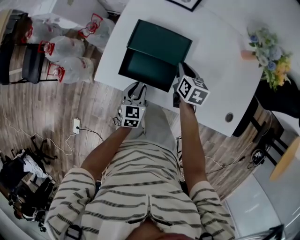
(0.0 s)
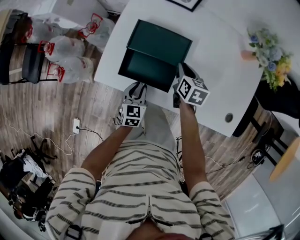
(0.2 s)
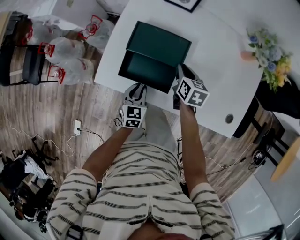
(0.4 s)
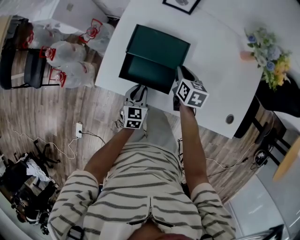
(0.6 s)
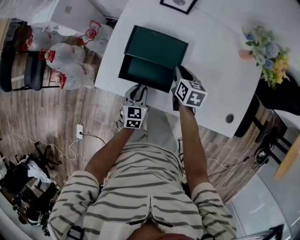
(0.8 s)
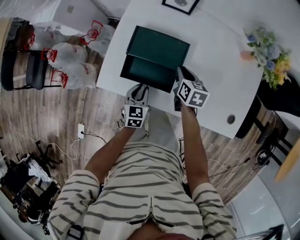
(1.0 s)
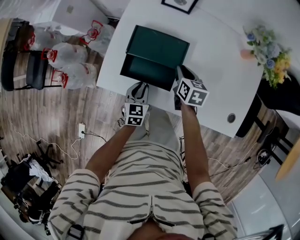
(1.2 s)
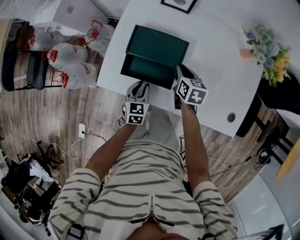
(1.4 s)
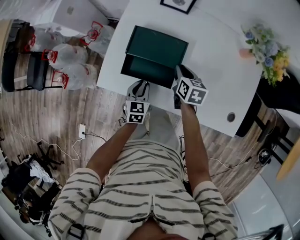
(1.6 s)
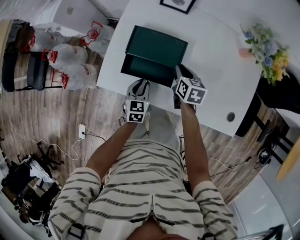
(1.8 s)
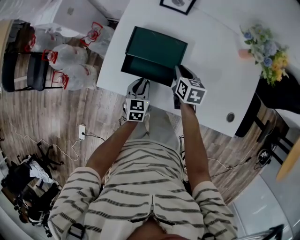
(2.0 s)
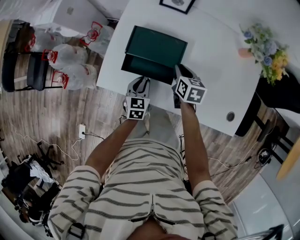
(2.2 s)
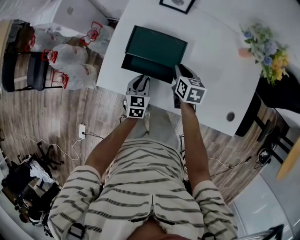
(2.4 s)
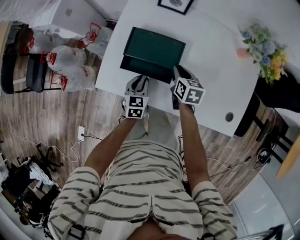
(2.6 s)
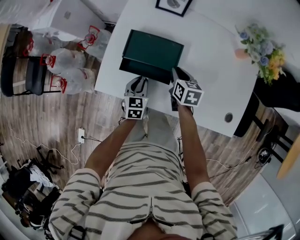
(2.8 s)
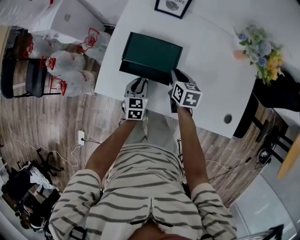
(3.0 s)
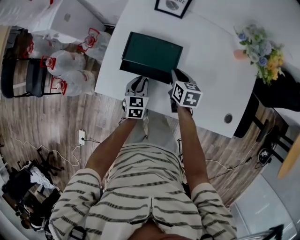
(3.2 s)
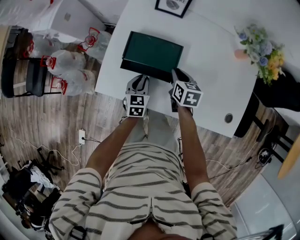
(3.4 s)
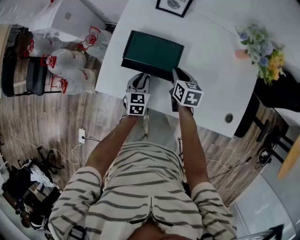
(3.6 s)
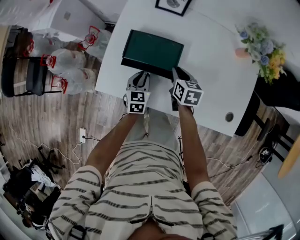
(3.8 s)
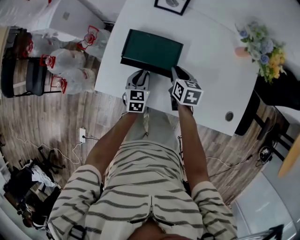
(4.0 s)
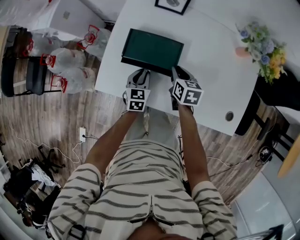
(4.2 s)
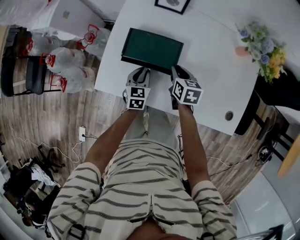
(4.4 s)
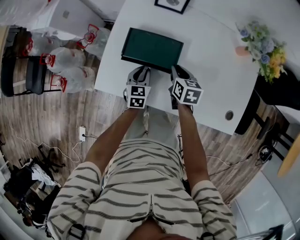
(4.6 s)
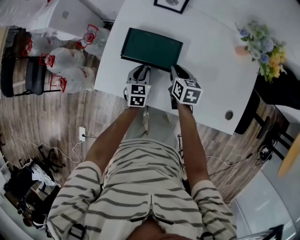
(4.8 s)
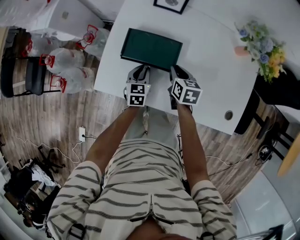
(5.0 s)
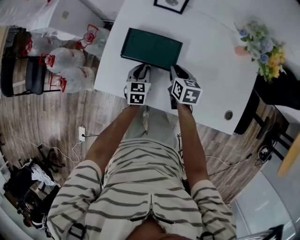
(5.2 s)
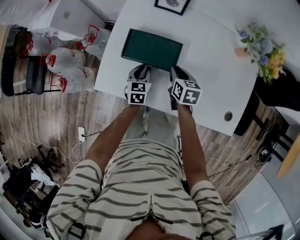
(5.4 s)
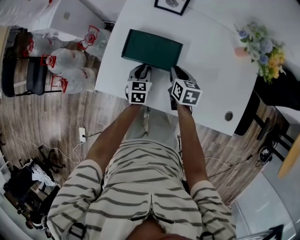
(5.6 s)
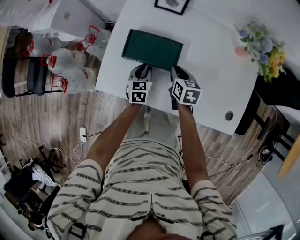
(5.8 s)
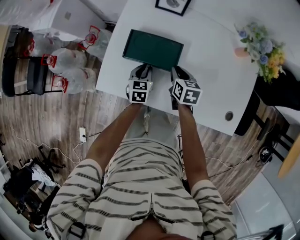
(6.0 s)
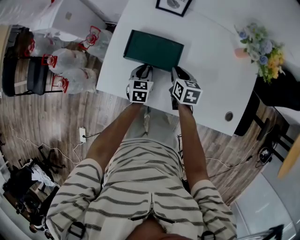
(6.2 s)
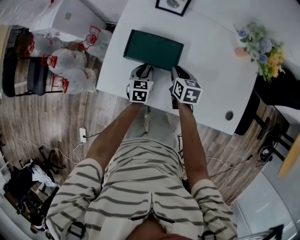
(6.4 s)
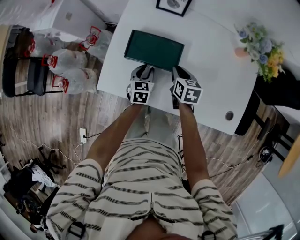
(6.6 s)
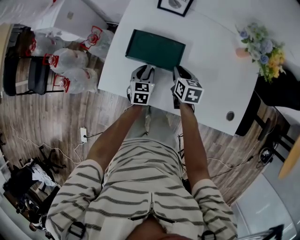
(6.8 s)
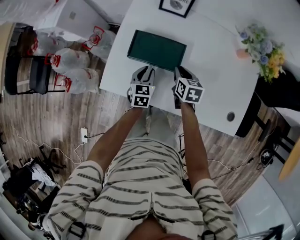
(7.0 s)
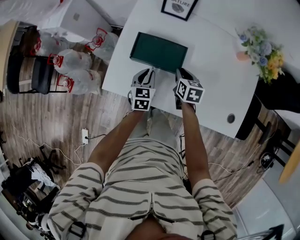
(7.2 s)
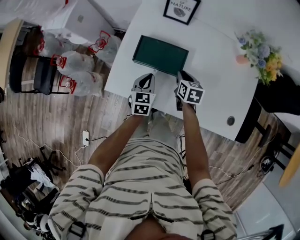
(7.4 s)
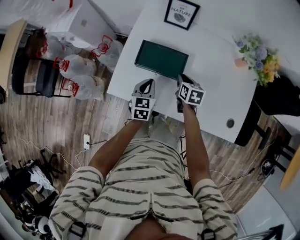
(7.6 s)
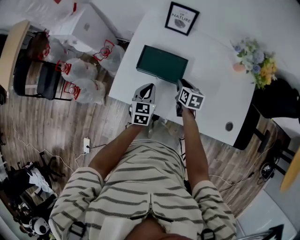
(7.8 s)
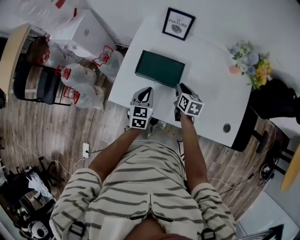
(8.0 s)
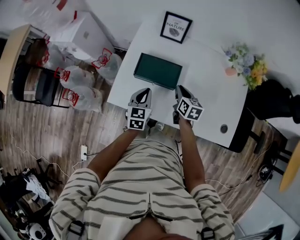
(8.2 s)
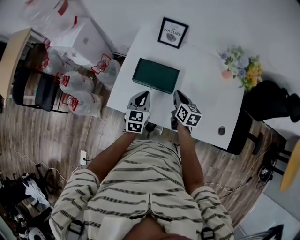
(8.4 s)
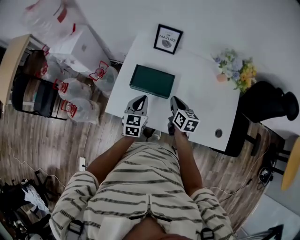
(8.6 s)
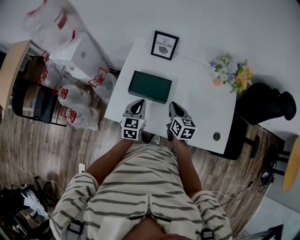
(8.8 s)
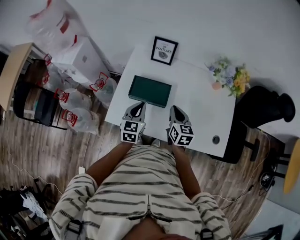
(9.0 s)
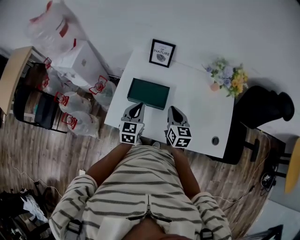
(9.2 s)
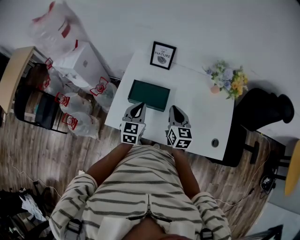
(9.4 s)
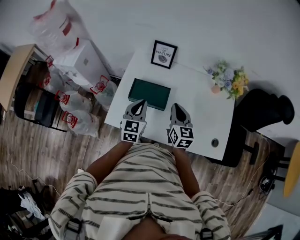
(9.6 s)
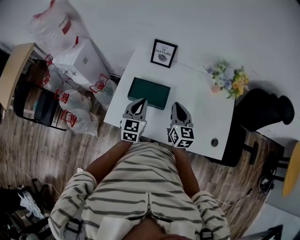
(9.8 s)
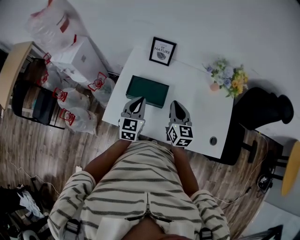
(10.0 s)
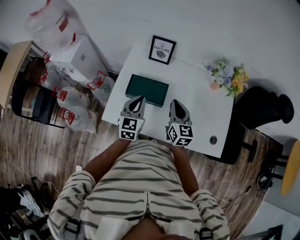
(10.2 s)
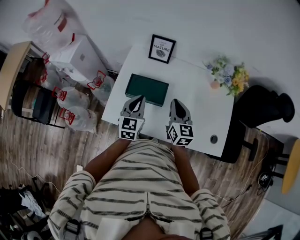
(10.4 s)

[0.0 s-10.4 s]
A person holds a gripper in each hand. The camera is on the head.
0.0 to 1.4 s: The grippers make only small movements.
1.4 to 3.0 s: There are only small adjustments of the grippers.
3.0 to 6.0 s: There are only small adjustments of the grippers.
6.0 to 7.4 s: The left gripper travels upward by some 5 cm.
7.4 to 9.0 s: The two grippers go approximately 15 cm upward. The right gripper turns by some 20 degrees.
9.0 to 10.4 s: The right gripper goes about 5 cm upward.

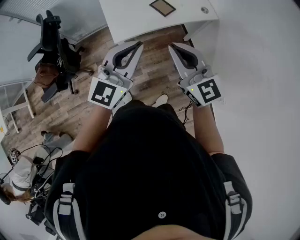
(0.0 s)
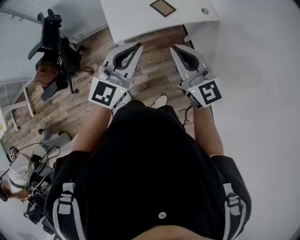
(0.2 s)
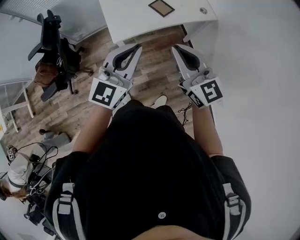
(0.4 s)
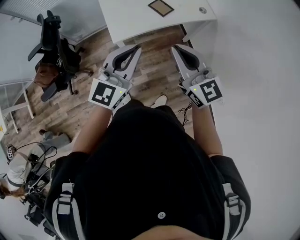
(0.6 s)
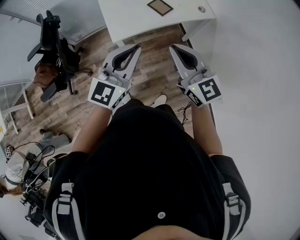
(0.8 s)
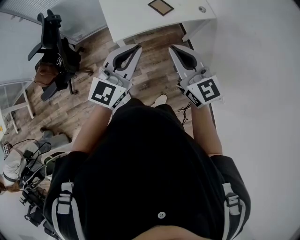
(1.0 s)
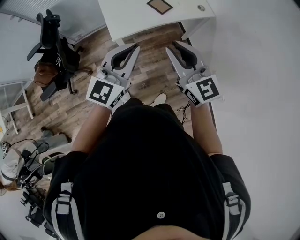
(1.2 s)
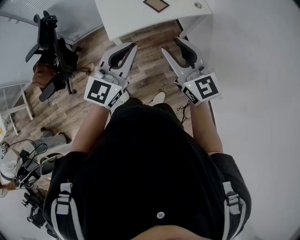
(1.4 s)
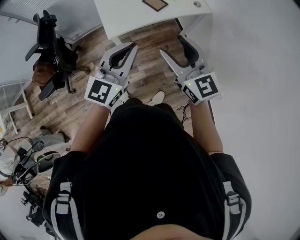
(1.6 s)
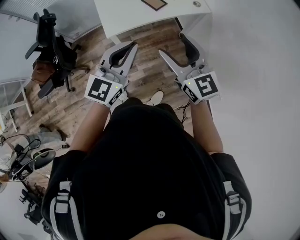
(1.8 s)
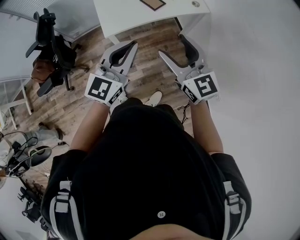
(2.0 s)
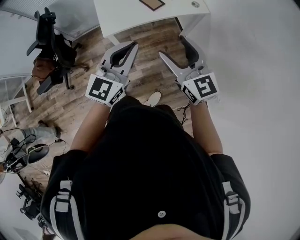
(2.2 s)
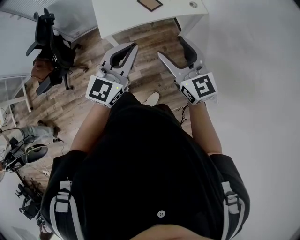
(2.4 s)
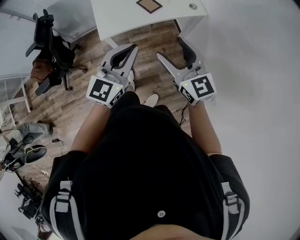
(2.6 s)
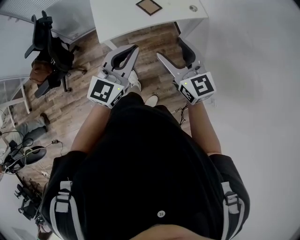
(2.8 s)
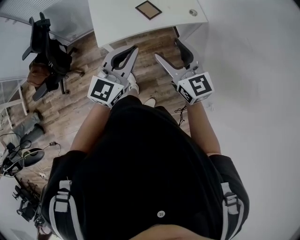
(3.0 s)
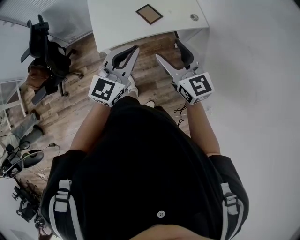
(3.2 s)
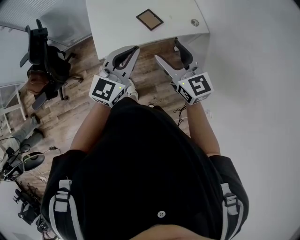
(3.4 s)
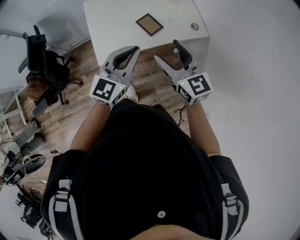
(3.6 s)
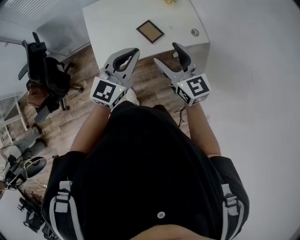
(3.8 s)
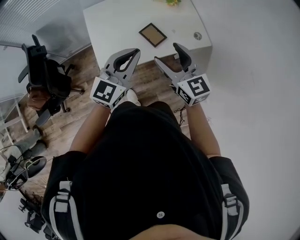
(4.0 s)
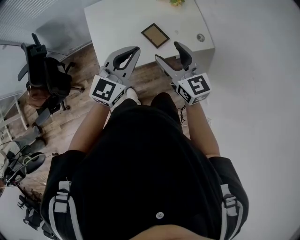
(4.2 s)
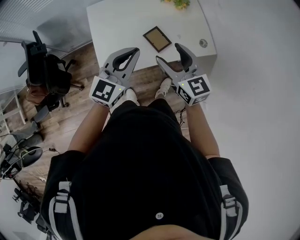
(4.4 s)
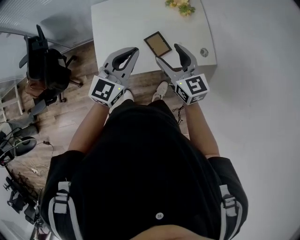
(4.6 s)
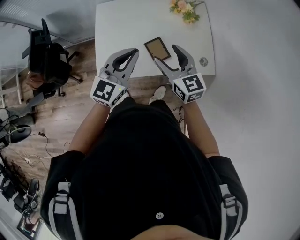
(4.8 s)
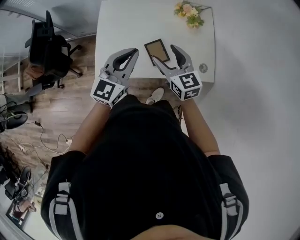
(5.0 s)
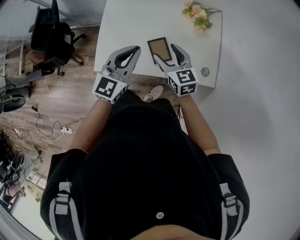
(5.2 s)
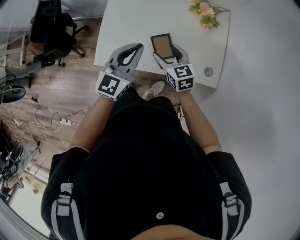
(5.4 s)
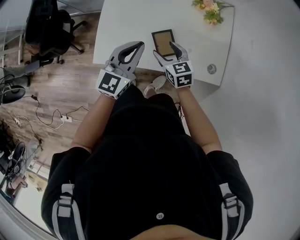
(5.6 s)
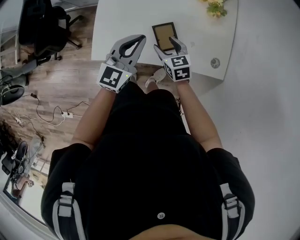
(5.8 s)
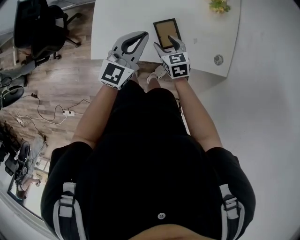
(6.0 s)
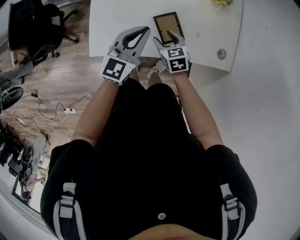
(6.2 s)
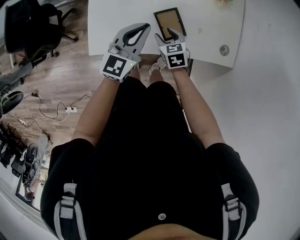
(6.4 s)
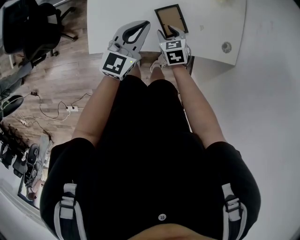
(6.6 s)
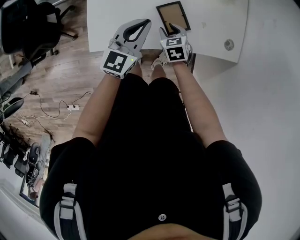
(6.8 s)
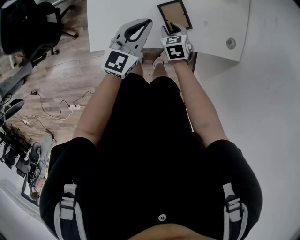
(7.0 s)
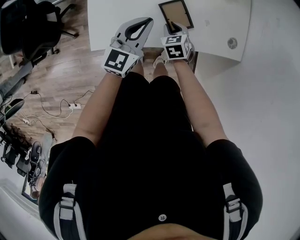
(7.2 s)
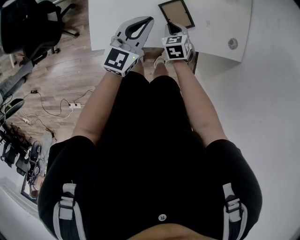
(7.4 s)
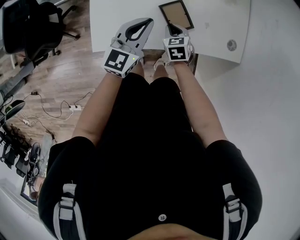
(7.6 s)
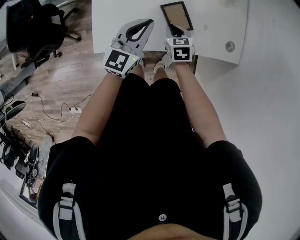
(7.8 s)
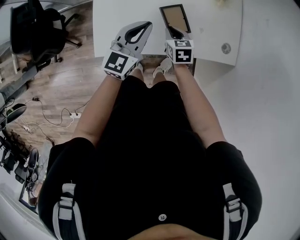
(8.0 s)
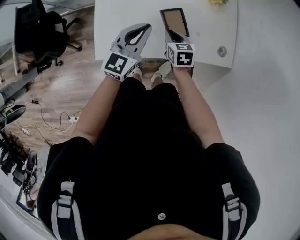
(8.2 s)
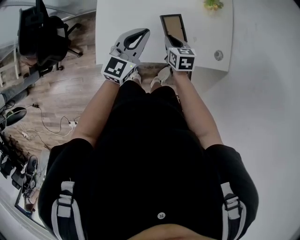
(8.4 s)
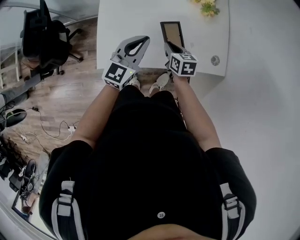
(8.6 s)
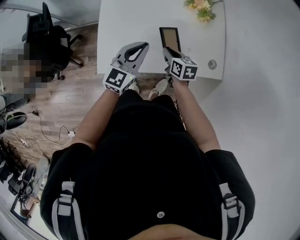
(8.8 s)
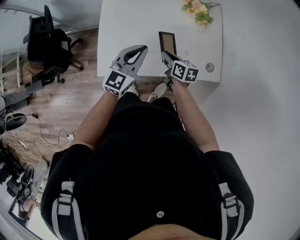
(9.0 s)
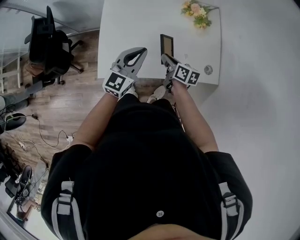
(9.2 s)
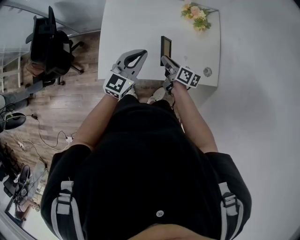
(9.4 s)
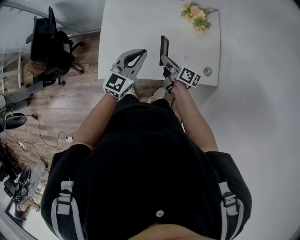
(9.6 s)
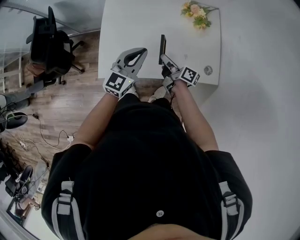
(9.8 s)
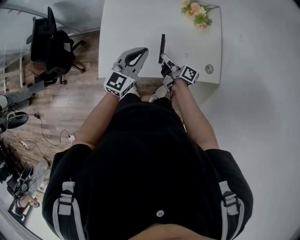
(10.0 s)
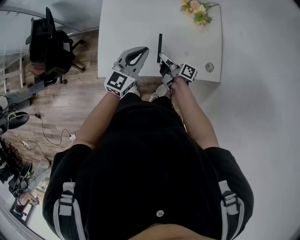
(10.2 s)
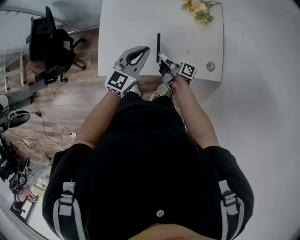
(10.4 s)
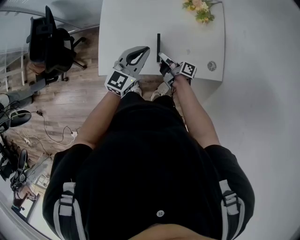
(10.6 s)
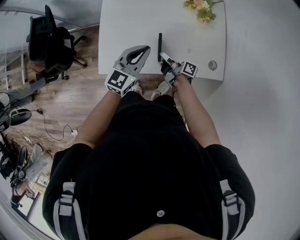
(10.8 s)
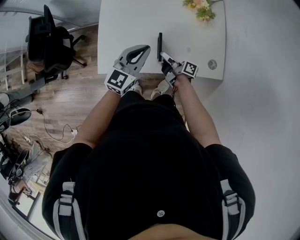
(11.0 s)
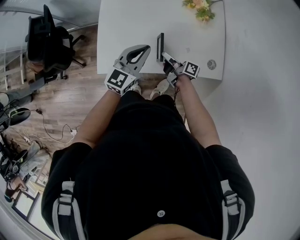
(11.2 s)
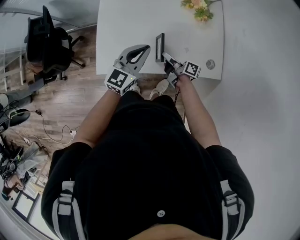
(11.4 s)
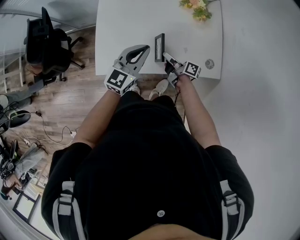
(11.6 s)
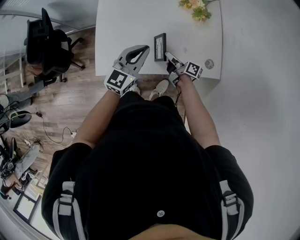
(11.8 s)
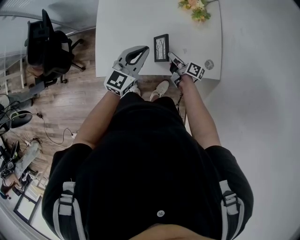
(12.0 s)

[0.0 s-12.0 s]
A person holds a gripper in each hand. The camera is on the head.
0.0 to 1.6 s: The left gripper moves roughly 5 cm. The right gripper changes place by approximately 5 cm, and opens up.
1.6 to 3.0 s: The left gripper goes some 10 cm to the right and forward; the right gripper goes about 10 cm forward and to the right.
3.0 to 4.4 s: The two grippers go about 30 cm forward.
4.4 to 6.0 s: The left gripper heads downward and forward, covering roughly 20 cm, and swivels roughly 20 degrees. Meanwhile the right gripper shifts roughly 30 cm downward and forward, and tips its fingers downward by approximately 30 degrees.
6.0 to 7.6 s: The grippers both shift downward by roughly 5 cm. The right gripper closes up.
7.6 to 9.0 s: Both grippers move upward, about 10 cm. The right gripper rotates roughly 40 degrees.
9.0 to 10.4 s: The right gripper changes its angle by roughly 50 degrees.
10.4 to 12.0 s: The right gripper shifts some 5 cm to the right.

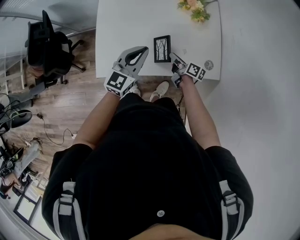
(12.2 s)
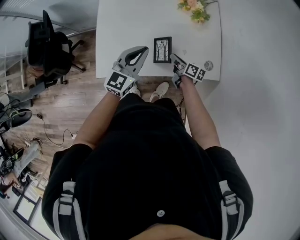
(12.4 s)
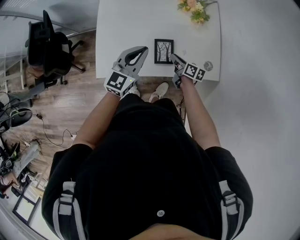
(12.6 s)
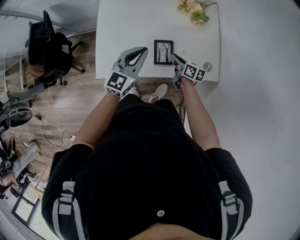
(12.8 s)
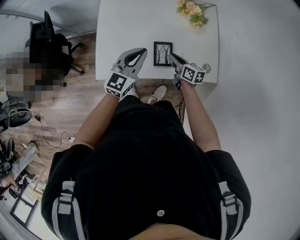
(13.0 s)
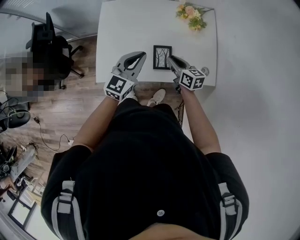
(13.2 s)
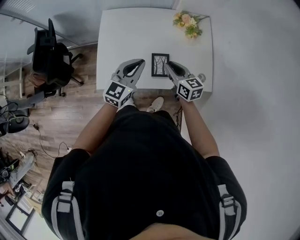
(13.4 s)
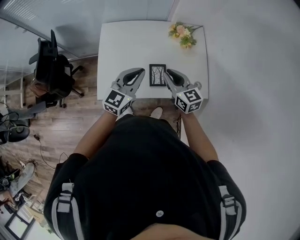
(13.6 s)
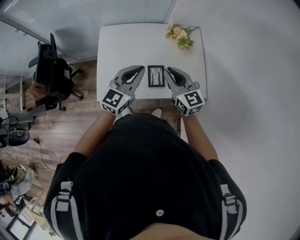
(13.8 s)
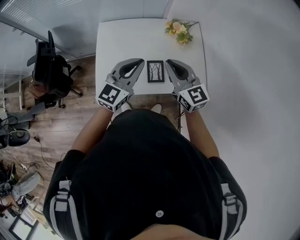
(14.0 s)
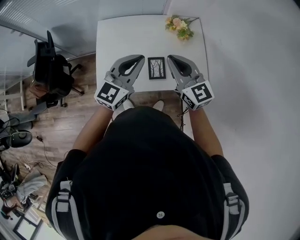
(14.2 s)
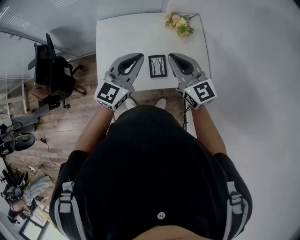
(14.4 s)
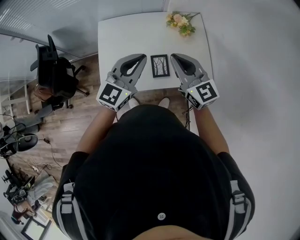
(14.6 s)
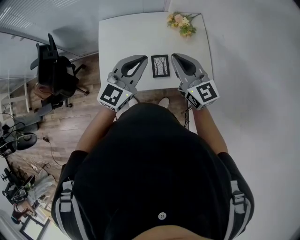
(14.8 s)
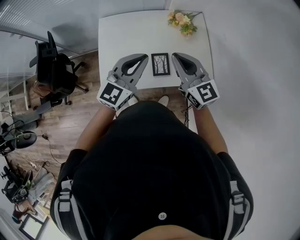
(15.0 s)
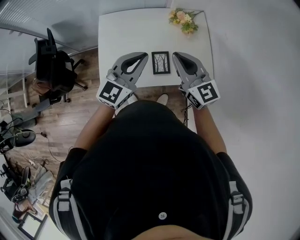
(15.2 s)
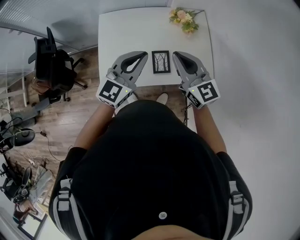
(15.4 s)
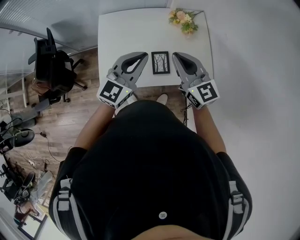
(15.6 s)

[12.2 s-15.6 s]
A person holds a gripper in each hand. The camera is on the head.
12.2 to 13.8 s: The right gripper shifts approximately 30 cm upward, and twists roughly 60 degrees counterclockwise, seen from behind; the left gripper heads upward, covering roughly 10 cm.
13.8 to 15.6 s: The right gripper is displaced upward by about 5 cm.
